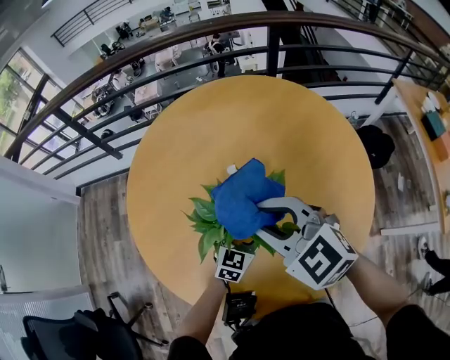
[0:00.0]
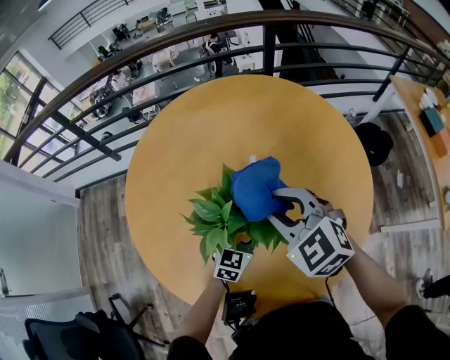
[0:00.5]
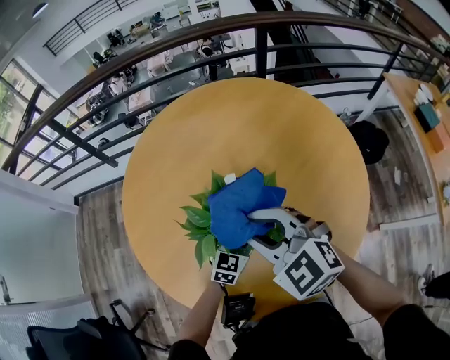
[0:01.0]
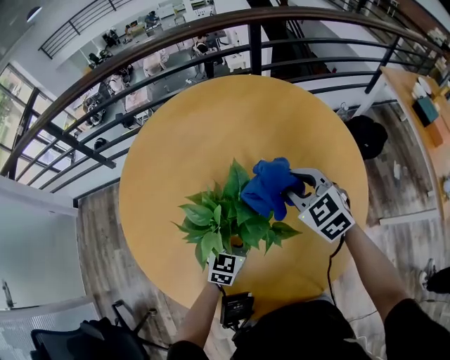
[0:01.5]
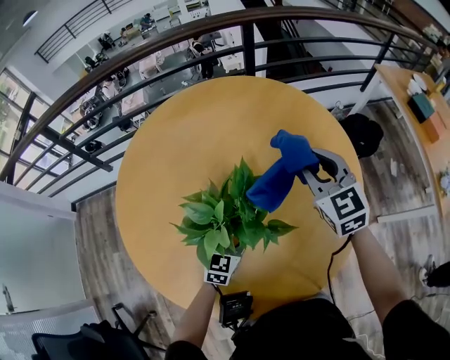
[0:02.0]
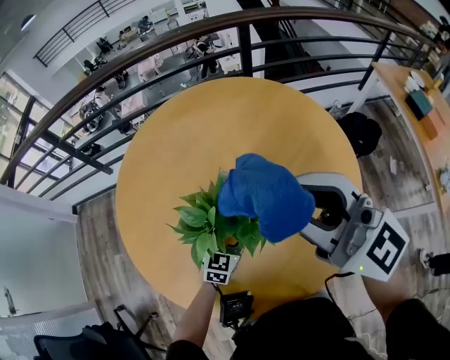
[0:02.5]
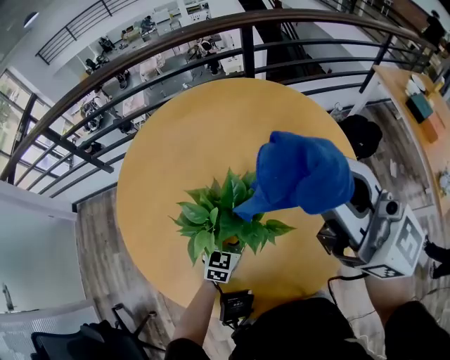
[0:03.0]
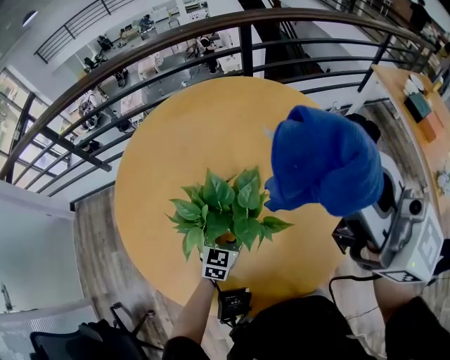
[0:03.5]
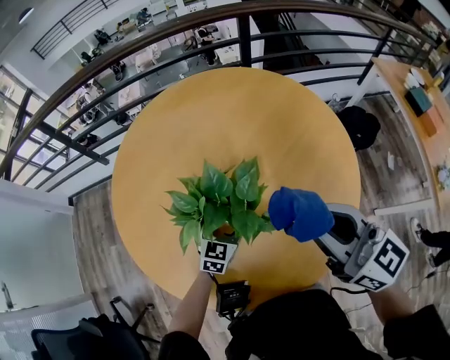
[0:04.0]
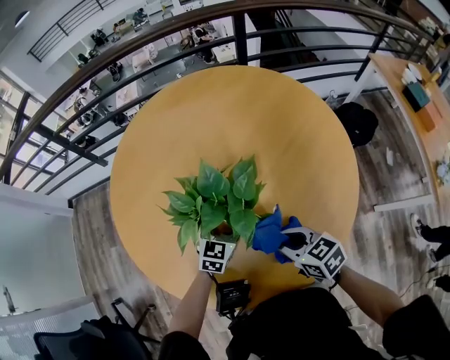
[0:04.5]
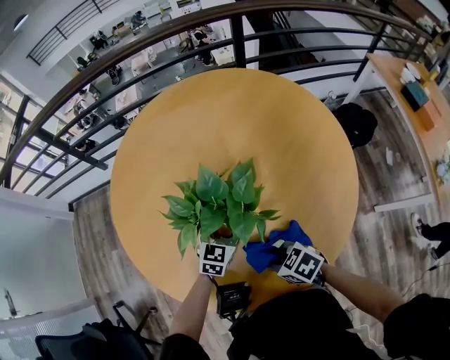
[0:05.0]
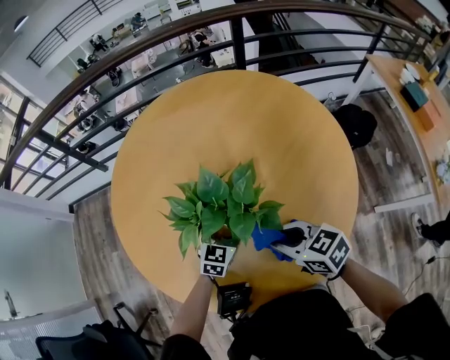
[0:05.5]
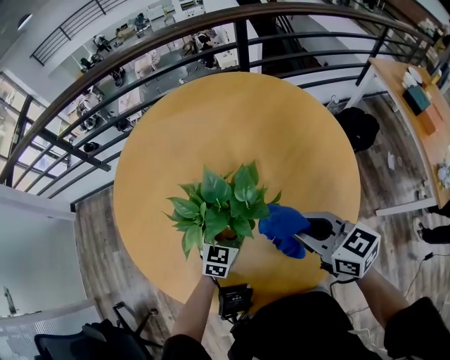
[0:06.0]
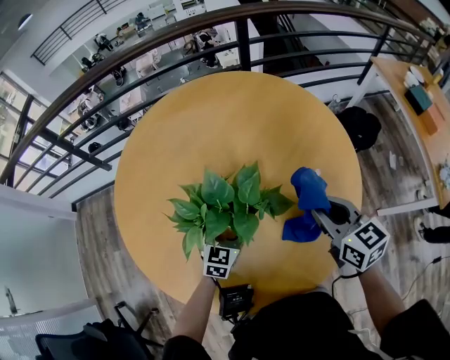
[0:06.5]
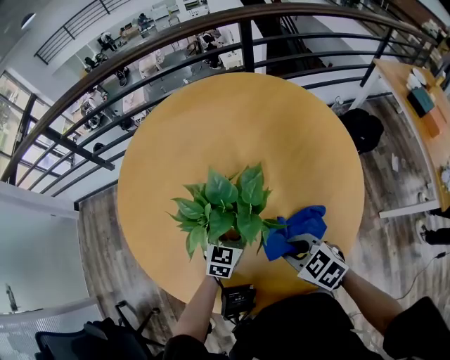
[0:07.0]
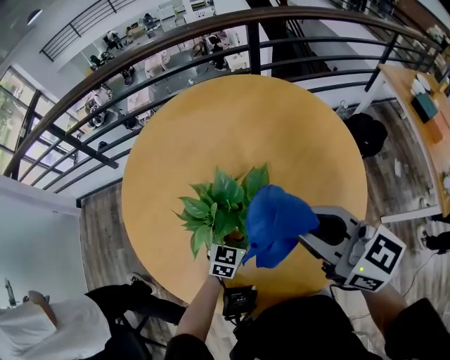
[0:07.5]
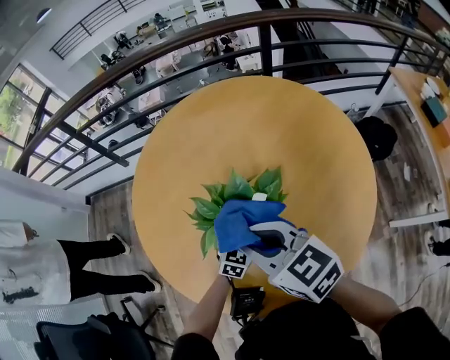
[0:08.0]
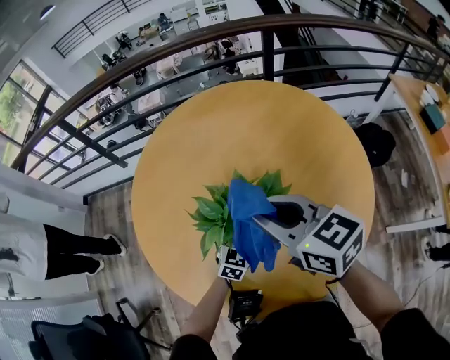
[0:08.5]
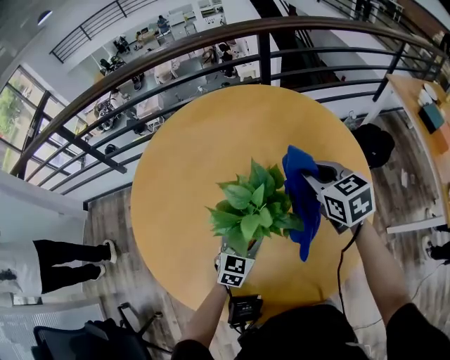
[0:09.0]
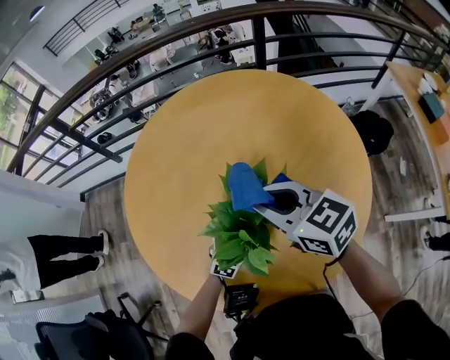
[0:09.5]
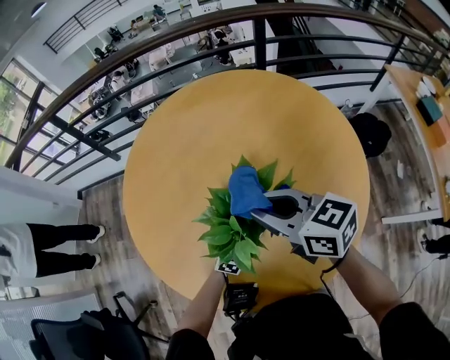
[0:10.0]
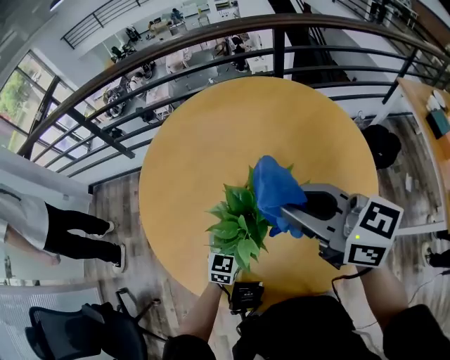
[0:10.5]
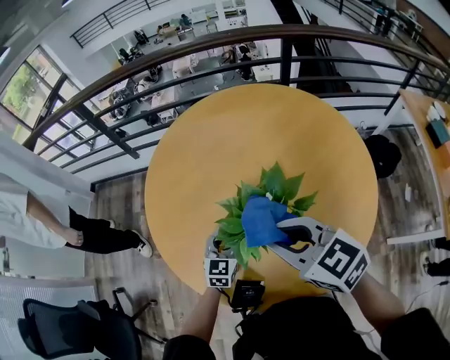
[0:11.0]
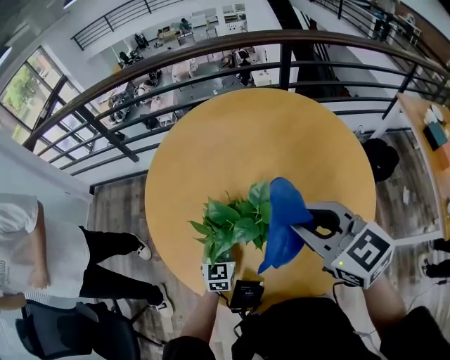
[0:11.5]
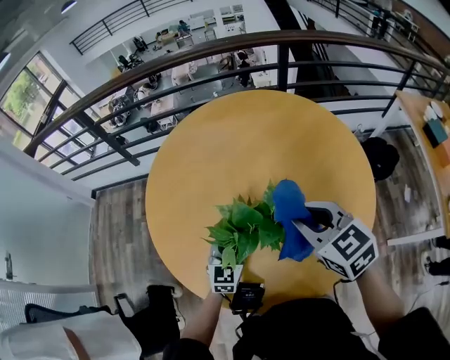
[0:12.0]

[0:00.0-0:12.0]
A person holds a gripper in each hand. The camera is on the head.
0:00.0 to 0:02.0: The right gripper swings left and right, roughly 20 cm each way, with 2 reversals, and rotates about 40 degrees.
0:02.0 to 0:04.0: The right gripper heads backward, covering approximately 15 cm, goes upward and returns, approximately 25 cm each way, and rotates about 40 degrees.
0:04.0 to 0:06.0: The right gripper heads downward, covering about 10 cm, and turns by roughly 20 degrees.
0:06.0 to 0:08.0: The right gripper goes up and down, approximately 25 cm each way, reversing 2 times.
0:08.0 to 0:10.0: The right gripper travels to the right and back again, some 20 cm each way.
0:10.0 to 0:12.0: The right gripper goes up and down, approximately 10 cm each way, reversing 3 times, and turns by about 30 degrees. Meanwhile the left gripper shifts about 10 cm to the left, and closes up.

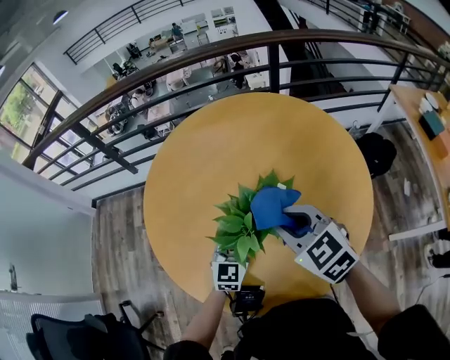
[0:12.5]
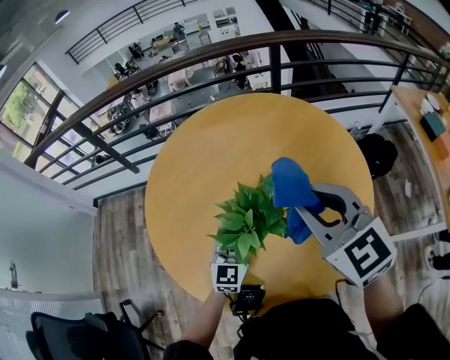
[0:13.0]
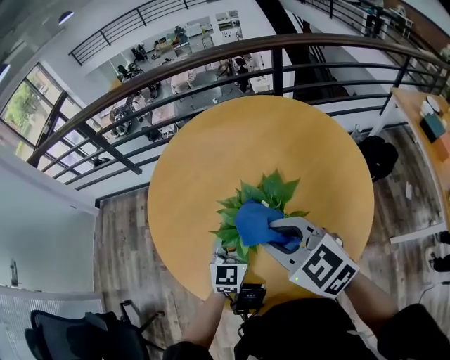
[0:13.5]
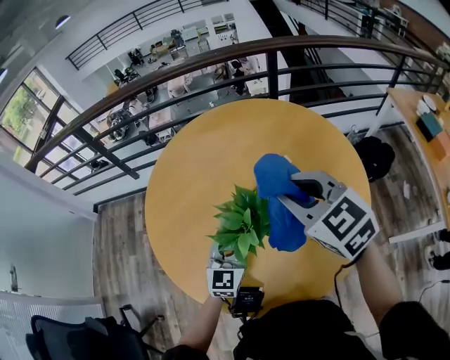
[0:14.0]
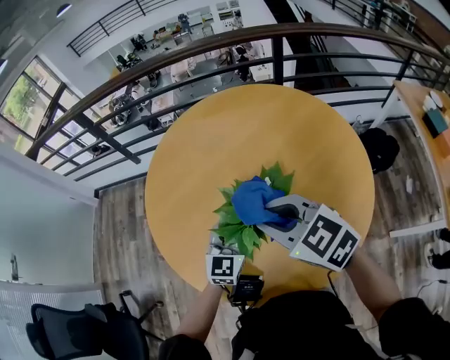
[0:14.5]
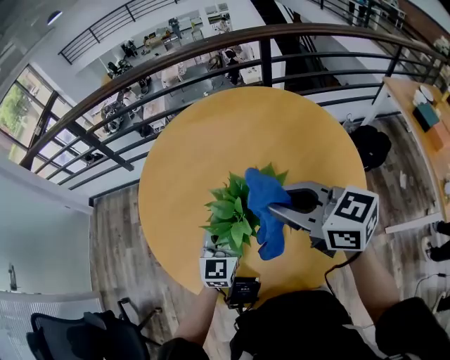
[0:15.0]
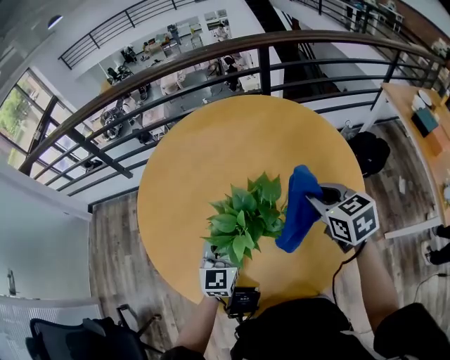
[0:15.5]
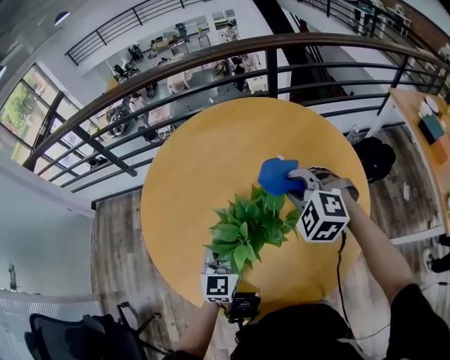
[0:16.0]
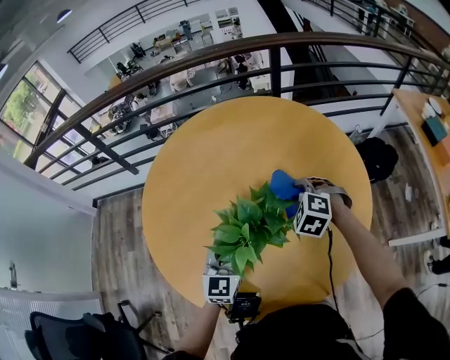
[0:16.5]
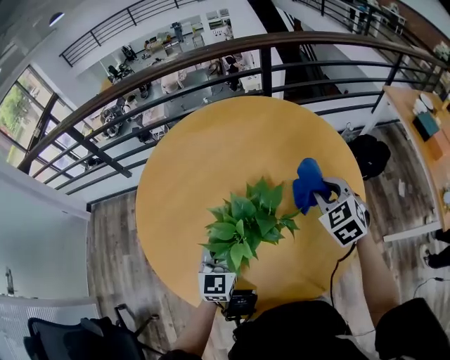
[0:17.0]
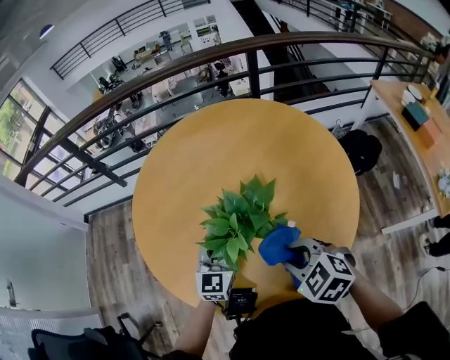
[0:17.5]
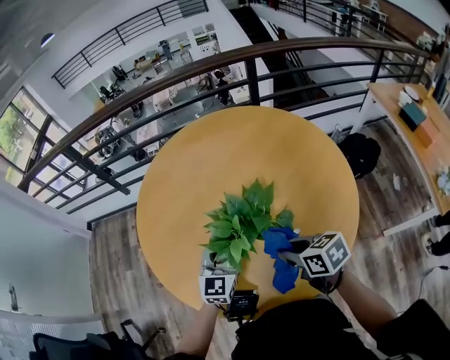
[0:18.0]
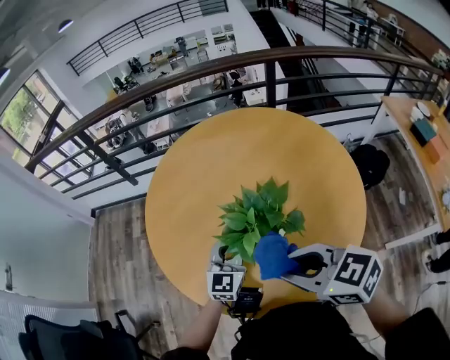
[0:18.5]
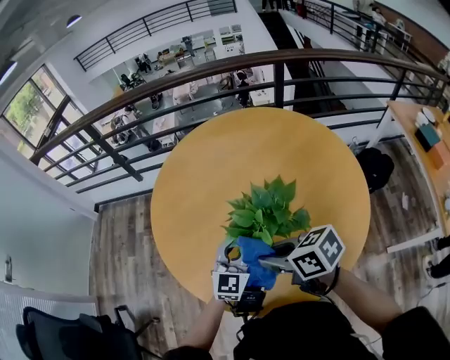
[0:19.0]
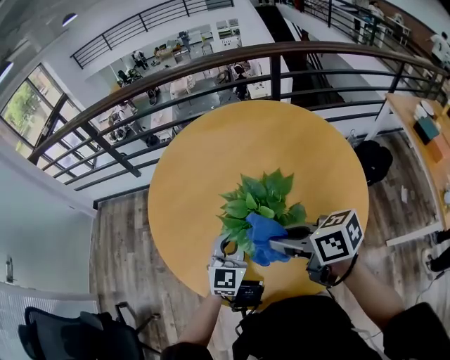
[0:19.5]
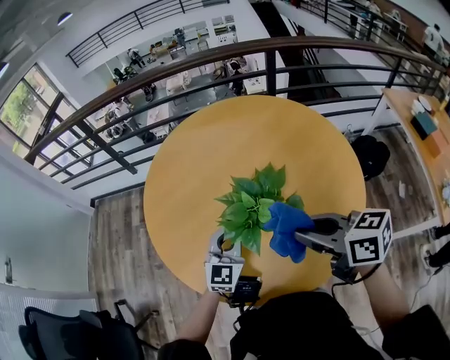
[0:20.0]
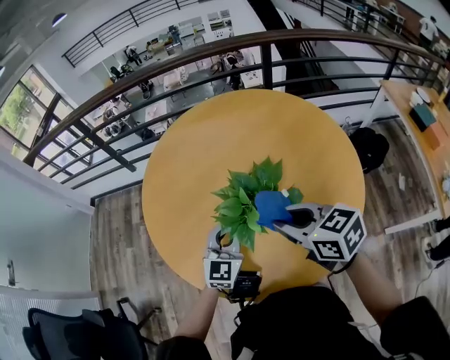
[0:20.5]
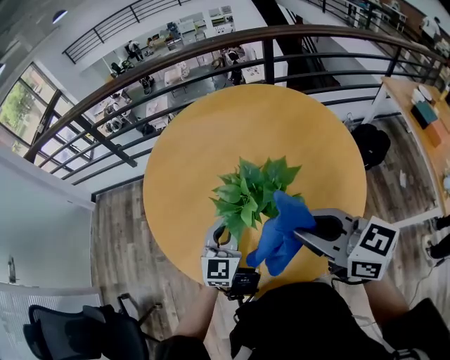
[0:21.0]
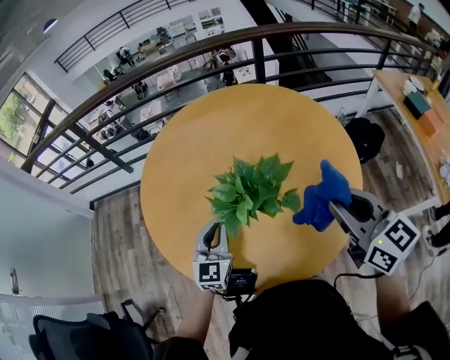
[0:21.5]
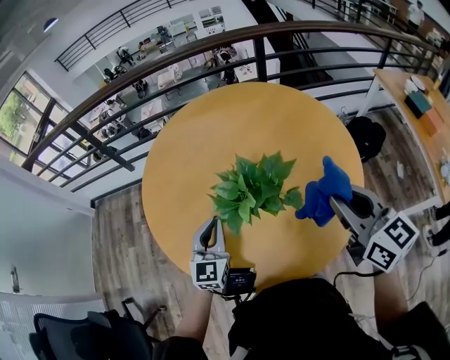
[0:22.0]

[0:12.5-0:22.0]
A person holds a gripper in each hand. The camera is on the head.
0:12.5 to 0:14.5: The right gripper goes up and down, approximately 10 cm each way, reversing 3 times.
0:14.5 to 0:16.5: The right gripper goes some 25 cm downward, to the right and forward, and rotates about 50 degrees.
0:16.5 to 0:18.0: The right gripper moves backward, about 20 cm, and rolls clockwise, seen from behind, by approximately 60 degrees.
0:18.0 to 0:20.0: The right gripper swings up and down, some 15 cm each way, with 2 reversals.
0:20.0 to 0:22.0: The right gripper is displaced to the right by approximately 10 cm, and swivels roughly 40 degrees. The left gripper is displaced to the left by some 5 cm.

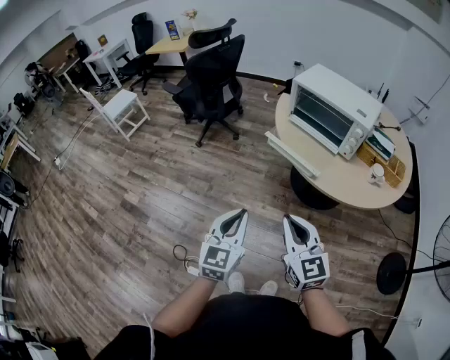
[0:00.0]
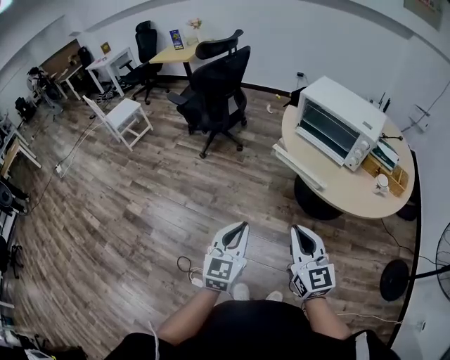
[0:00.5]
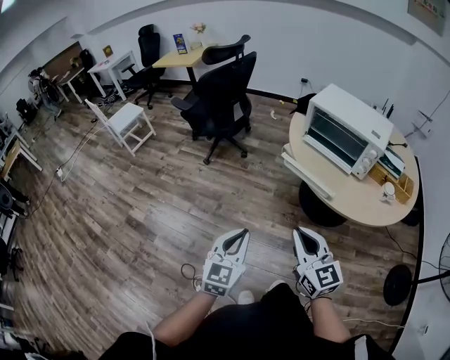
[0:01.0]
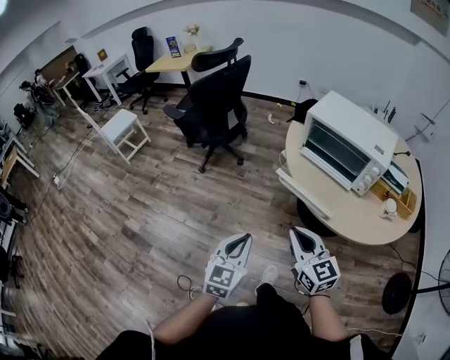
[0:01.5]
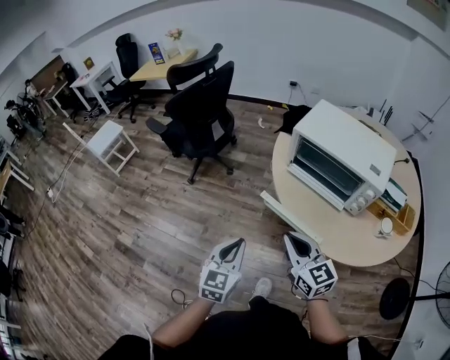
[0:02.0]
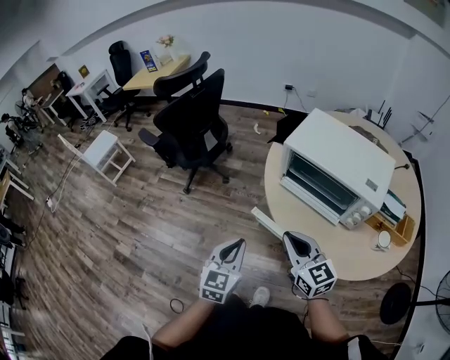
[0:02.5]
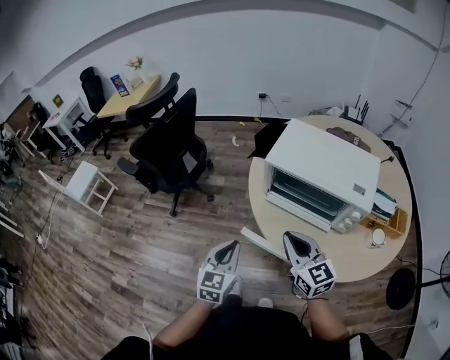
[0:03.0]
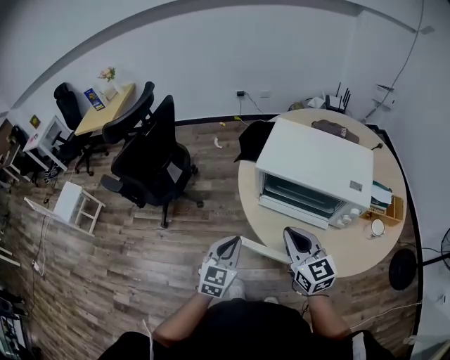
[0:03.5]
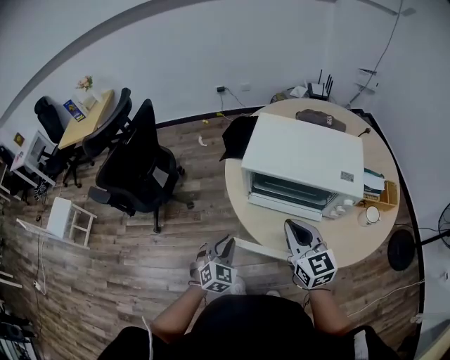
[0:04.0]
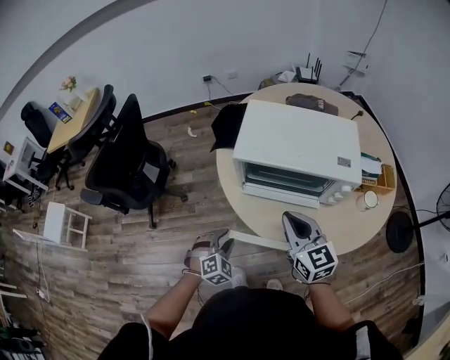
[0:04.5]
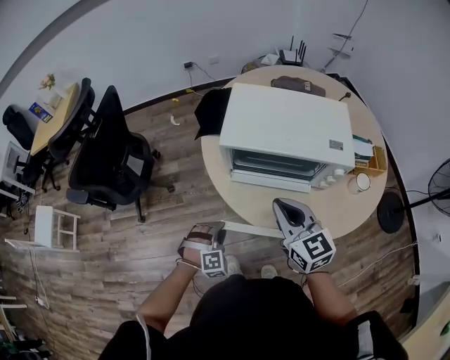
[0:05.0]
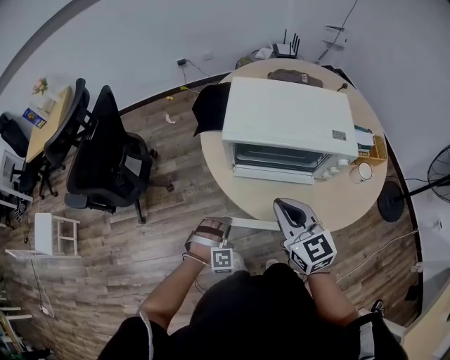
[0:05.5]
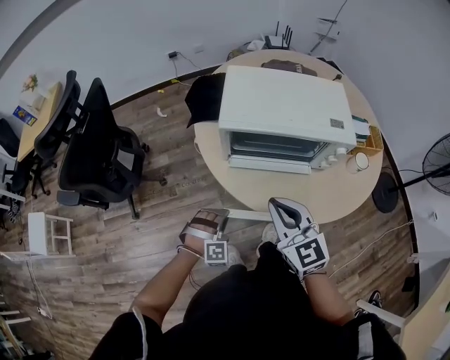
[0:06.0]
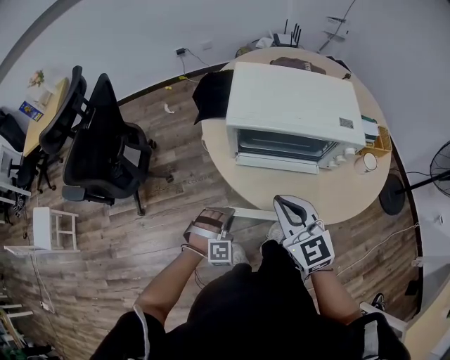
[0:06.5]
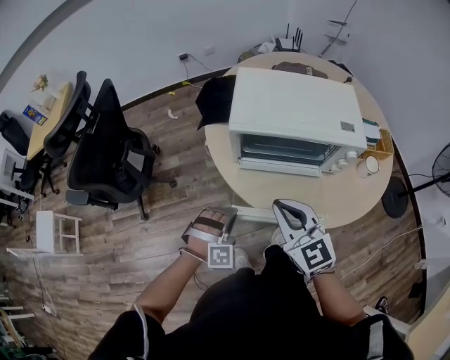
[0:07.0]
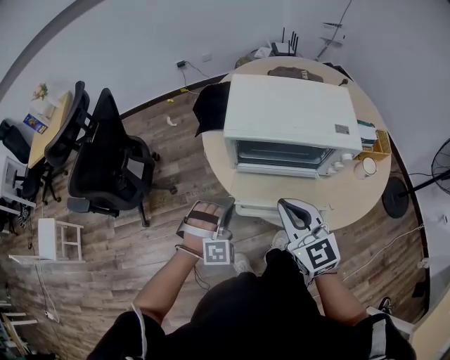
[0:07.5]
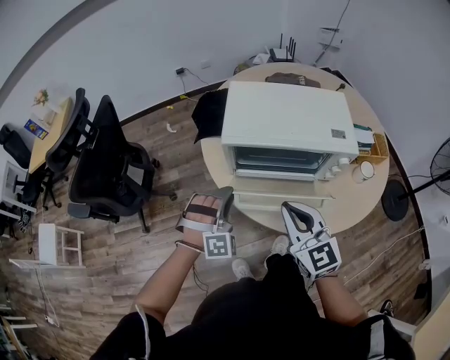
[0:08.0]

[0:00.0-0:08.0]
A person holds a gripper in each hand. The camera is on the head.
0:00.0 to 0:02.0: Both grippers move forward, roughly 25 cm.
0:02.0 to 0:04.0: The right gripper moves forward and to the right, about 20 cm, and changes its angle by some 30 degrees, while the left gripper moves forward, some 25 cm, and turns by approximately 40 degrees.
0:04.0 to 0:06.0: The right gripper changes place by approximately 5 cm, while the left gripper goes roughly 10 cm downward, and rolls clockwise, seen from behind, by roughly 60 degrees.
0:06.0 to 0:08.0: The left gripper is displaced upward and forward by about 20 cm, and rotates roughly 20 degrees.
